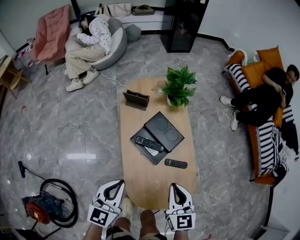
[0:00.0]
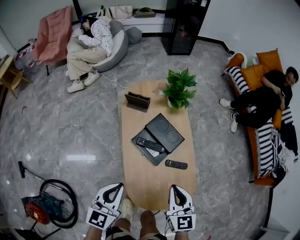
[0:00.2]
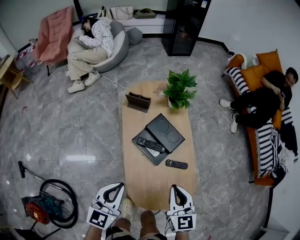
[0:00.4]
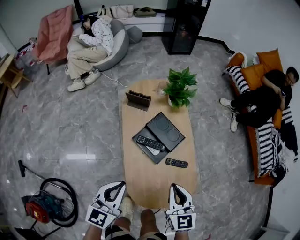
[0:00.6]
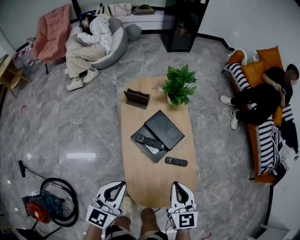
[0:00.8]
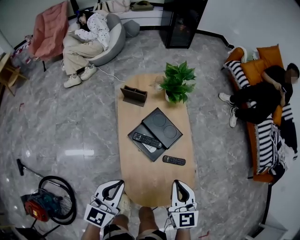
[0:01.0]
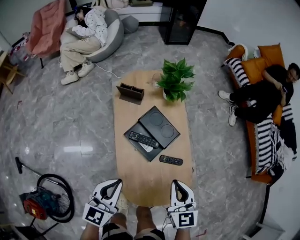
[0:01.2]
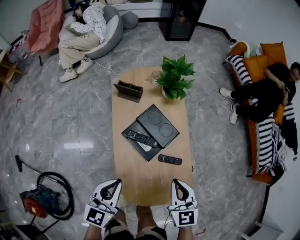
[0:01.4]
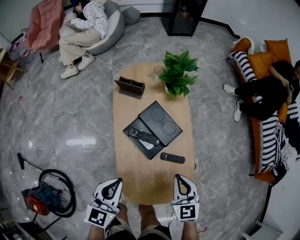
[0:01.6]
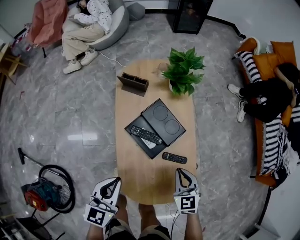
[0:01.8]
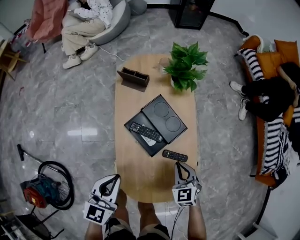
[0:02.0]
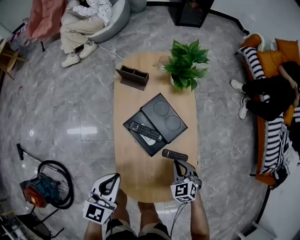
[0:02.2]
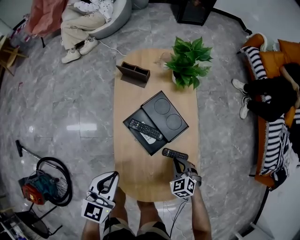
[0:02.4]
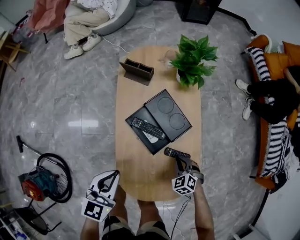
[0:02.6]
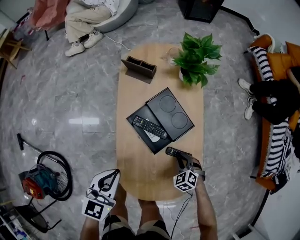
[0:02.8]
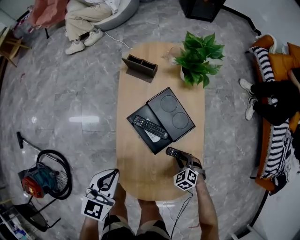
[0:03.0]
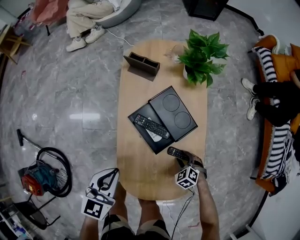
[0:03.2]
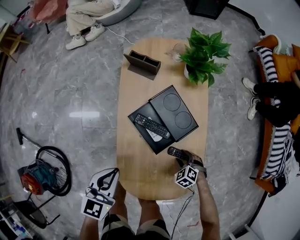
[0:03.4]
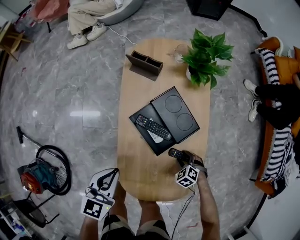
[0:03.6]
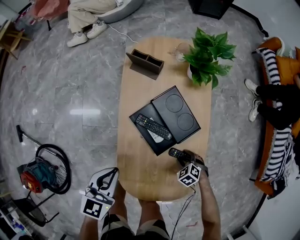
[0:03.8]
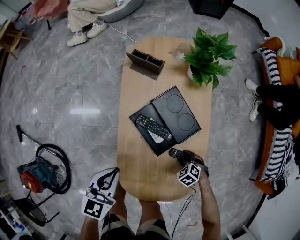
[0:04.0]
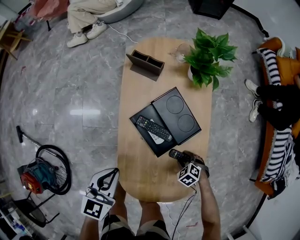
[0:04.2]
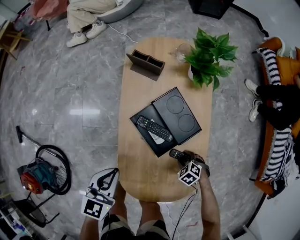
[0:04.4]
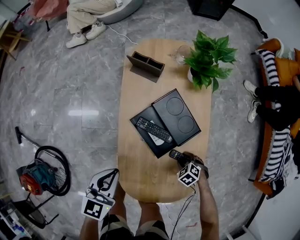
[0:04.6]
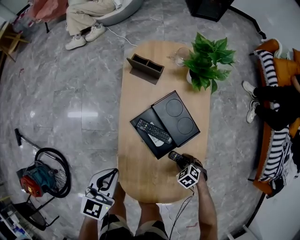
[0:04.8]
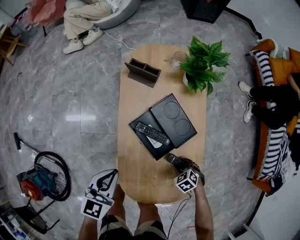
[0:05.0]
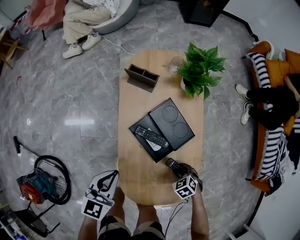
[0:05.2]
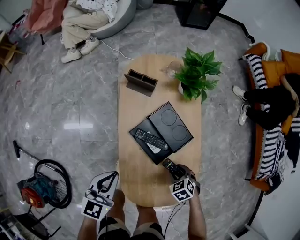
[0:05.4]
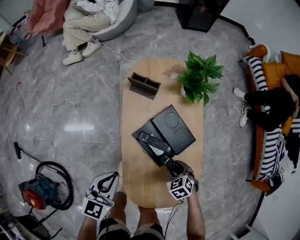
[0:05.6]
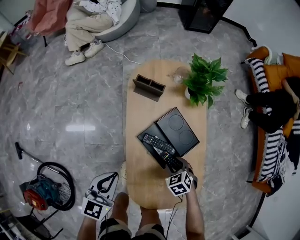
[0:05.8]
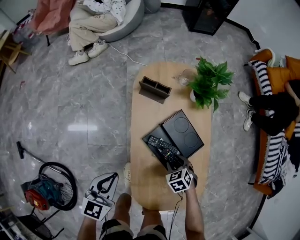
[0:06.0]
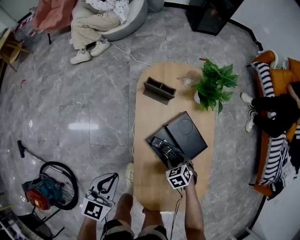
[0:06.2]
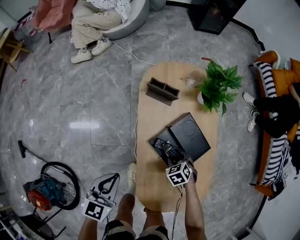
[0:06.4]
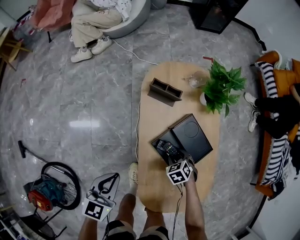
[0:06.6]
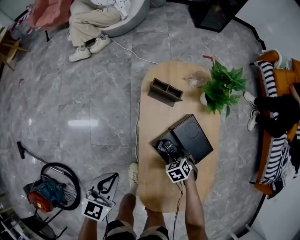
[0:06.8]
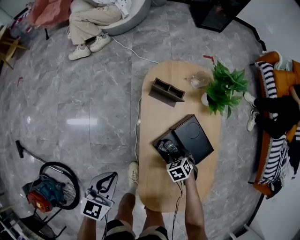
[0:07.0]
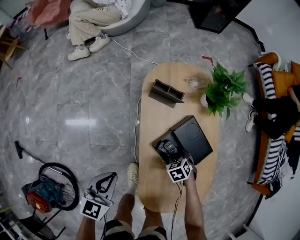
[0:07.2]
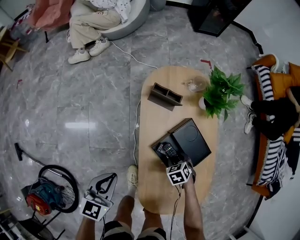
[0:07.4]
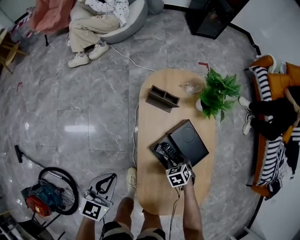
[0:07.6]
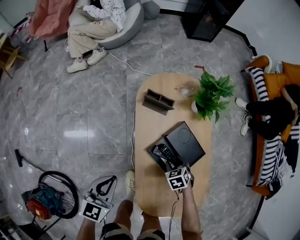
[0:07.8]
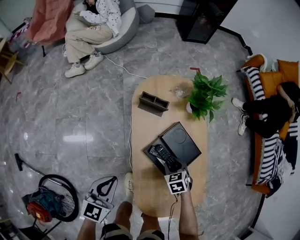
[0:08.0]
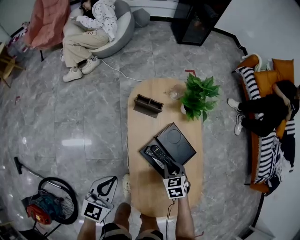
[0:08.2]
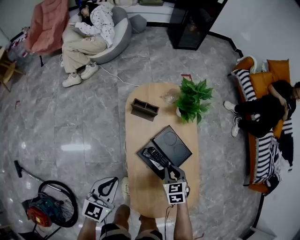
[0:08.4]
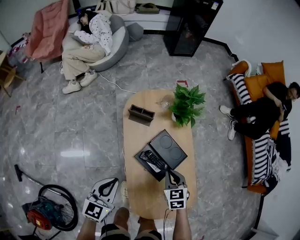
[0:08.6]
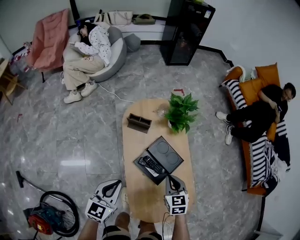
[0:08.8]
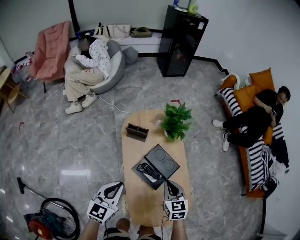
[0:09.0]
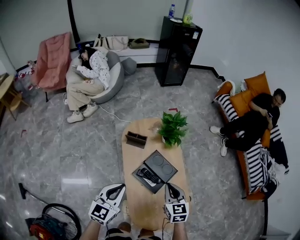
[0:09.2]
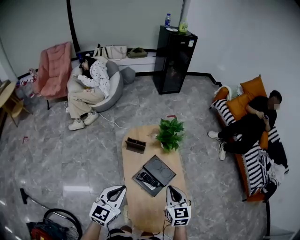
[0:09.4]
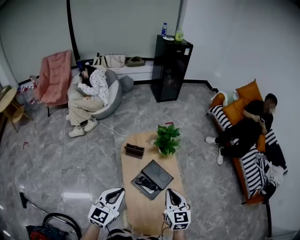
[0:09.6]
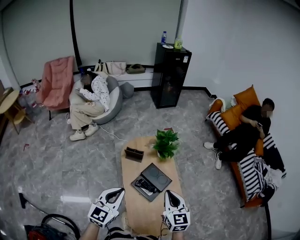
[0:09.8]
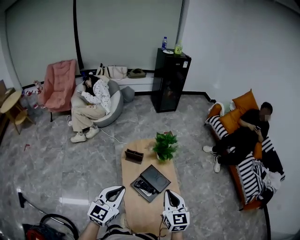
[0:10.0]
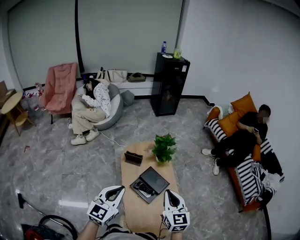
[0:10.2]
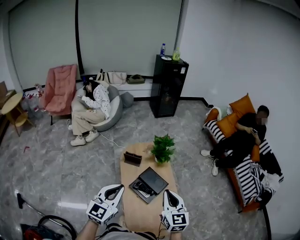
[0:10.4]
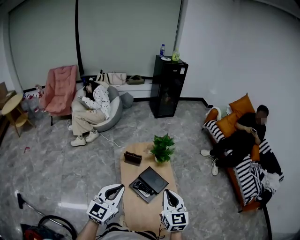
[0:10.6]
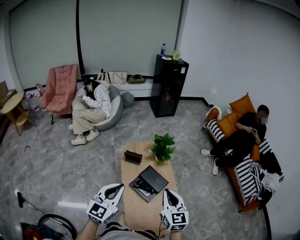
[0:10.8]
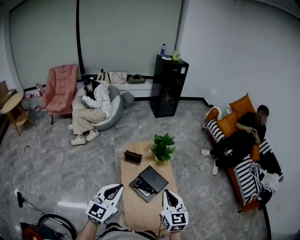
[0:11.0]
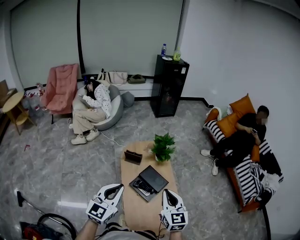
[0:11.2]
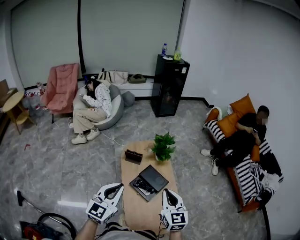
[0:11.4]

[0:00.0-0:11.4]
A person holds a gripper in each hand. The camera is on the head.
0:00.0 to 0:01.4: The right gripper moves about 5 cm.
0:01.4 to 0:02.8: The right gripper moves downward, some 30 cm, and tips its fingers downward by some 30 degrees; the left gripper goes some 10 cm downward.
0:02.8 to 0:04.2: The right gripper heads downward, covering some 5 cm, and opens up.
0:04.2 to 0:05.6: The right gripper shifts roughly 15 cm upward, and swivels roughly 20 degrees, while the left gripper ends up some 5 cm from where it was.
0:05.6 to 0:07.2: The left gripper ends up approximately 15 cm from where it was, while the right gripper shifts by about 15 cm.
0:07.2 to 0:08.6: The right gripper moves upward, some 20 cm, swivels roughly 30 degrees, and closes; the left gripper goes some 10 cm upward.
0:08.6 to 0:10.0: The grippers both shift upward by roughly 30 cm. The right gripper tips its fingers upward by some 30 degrees.
0:10.0 to 0:11.4: The grippers make only small movements.

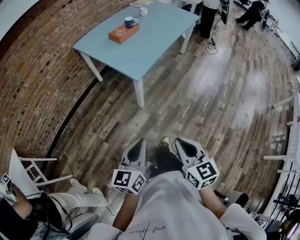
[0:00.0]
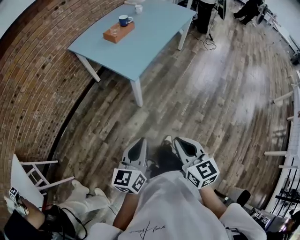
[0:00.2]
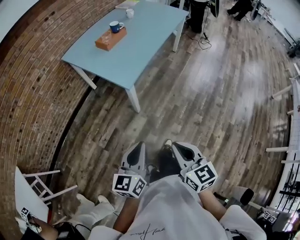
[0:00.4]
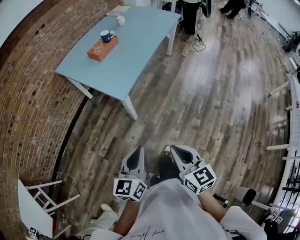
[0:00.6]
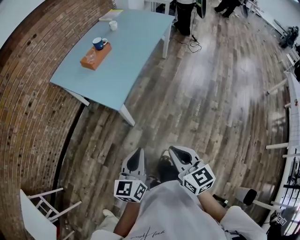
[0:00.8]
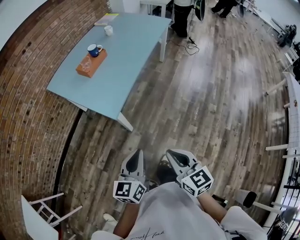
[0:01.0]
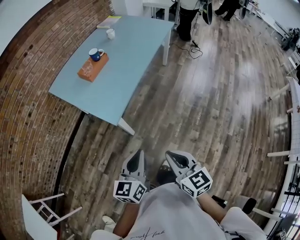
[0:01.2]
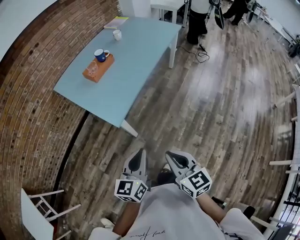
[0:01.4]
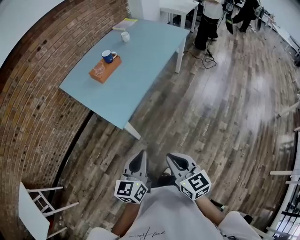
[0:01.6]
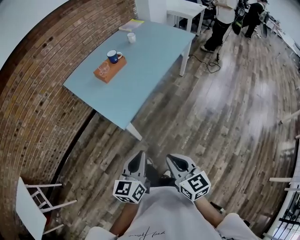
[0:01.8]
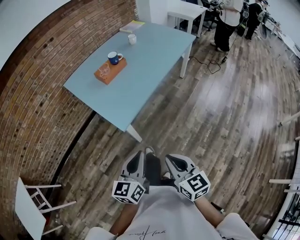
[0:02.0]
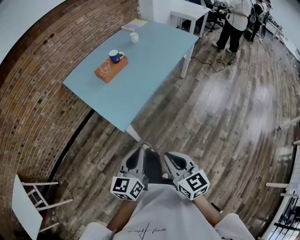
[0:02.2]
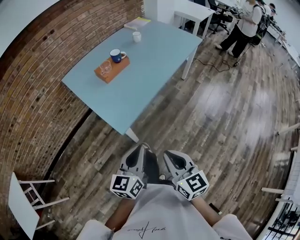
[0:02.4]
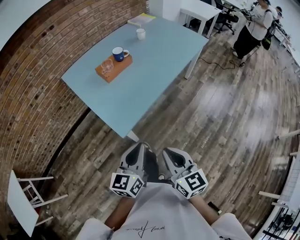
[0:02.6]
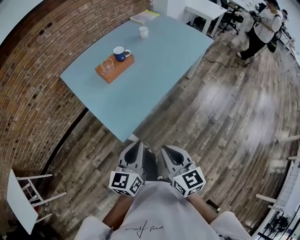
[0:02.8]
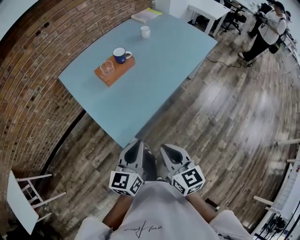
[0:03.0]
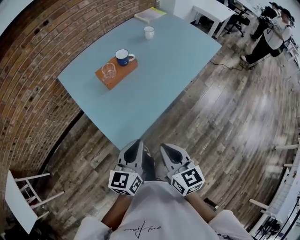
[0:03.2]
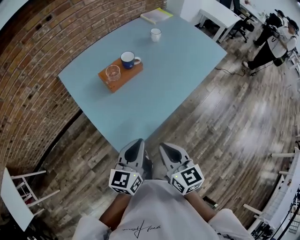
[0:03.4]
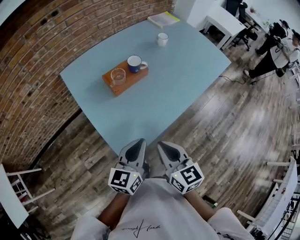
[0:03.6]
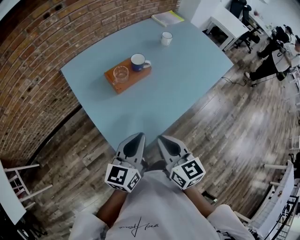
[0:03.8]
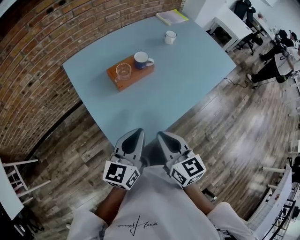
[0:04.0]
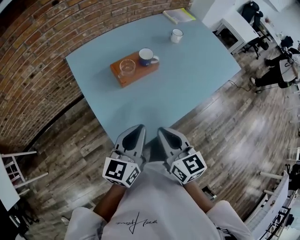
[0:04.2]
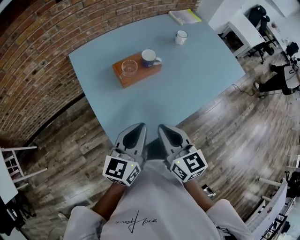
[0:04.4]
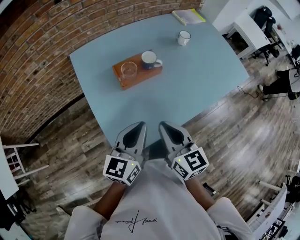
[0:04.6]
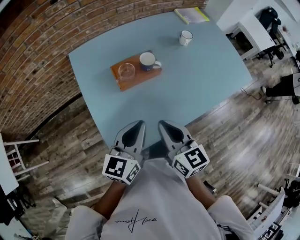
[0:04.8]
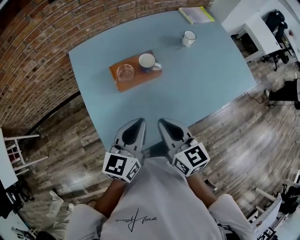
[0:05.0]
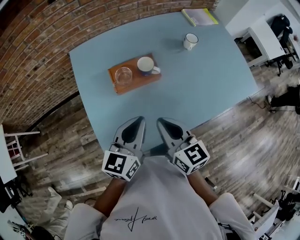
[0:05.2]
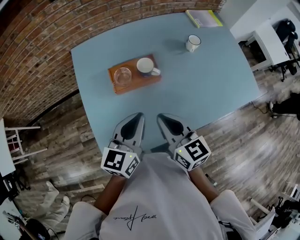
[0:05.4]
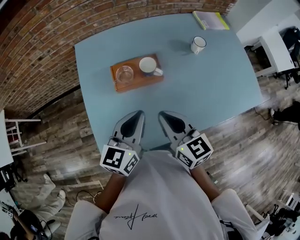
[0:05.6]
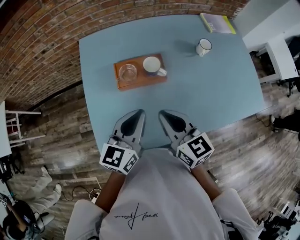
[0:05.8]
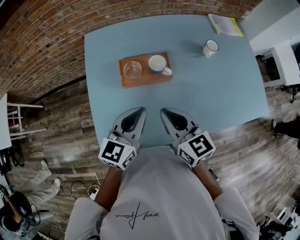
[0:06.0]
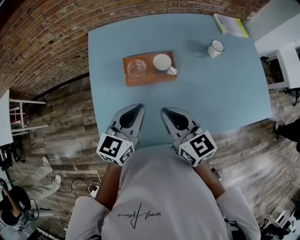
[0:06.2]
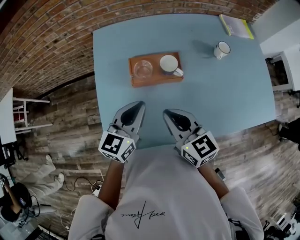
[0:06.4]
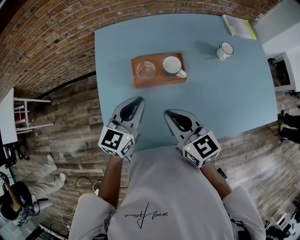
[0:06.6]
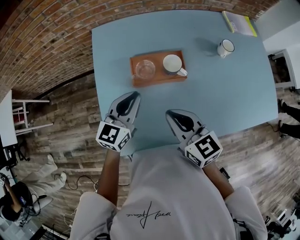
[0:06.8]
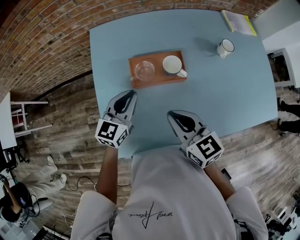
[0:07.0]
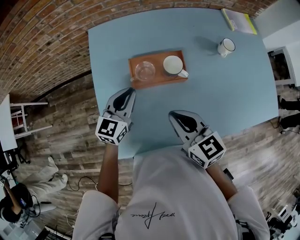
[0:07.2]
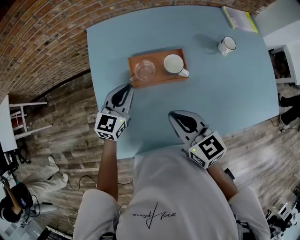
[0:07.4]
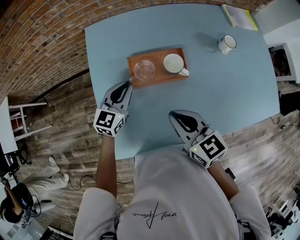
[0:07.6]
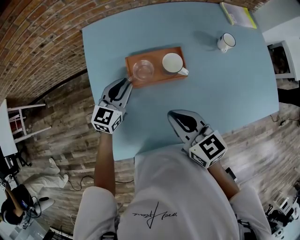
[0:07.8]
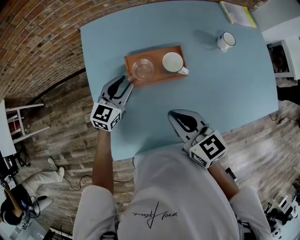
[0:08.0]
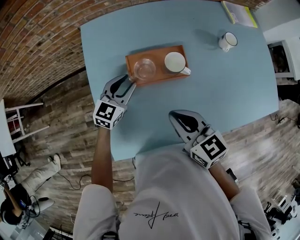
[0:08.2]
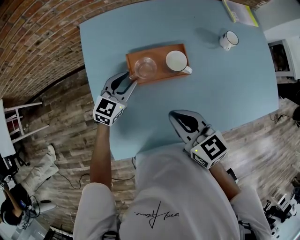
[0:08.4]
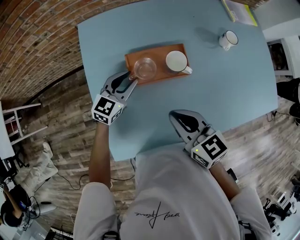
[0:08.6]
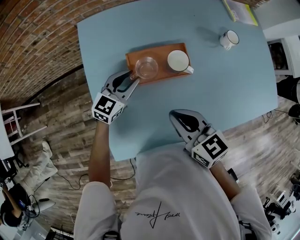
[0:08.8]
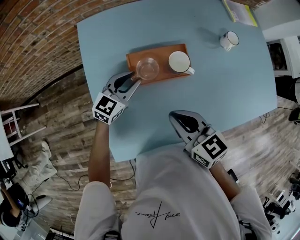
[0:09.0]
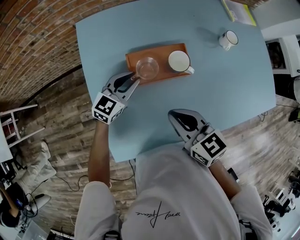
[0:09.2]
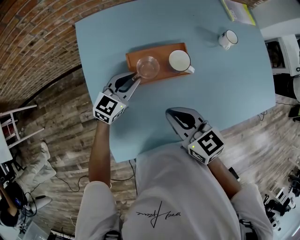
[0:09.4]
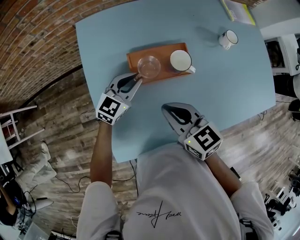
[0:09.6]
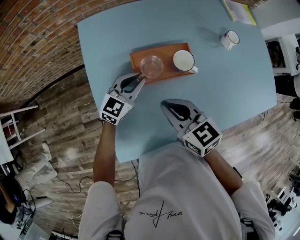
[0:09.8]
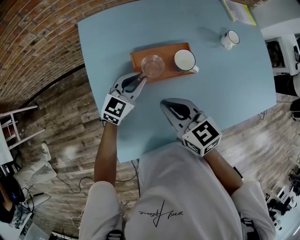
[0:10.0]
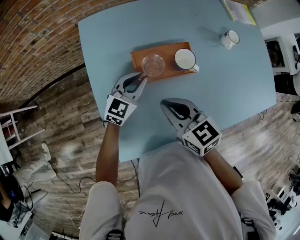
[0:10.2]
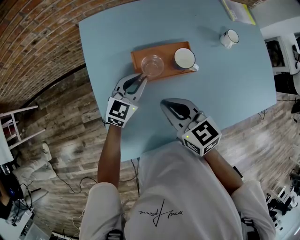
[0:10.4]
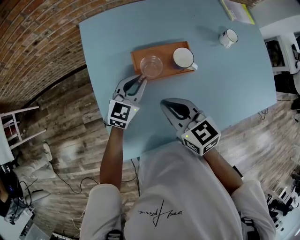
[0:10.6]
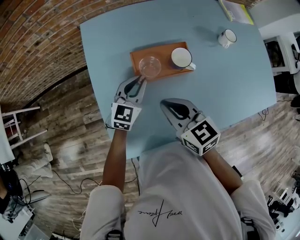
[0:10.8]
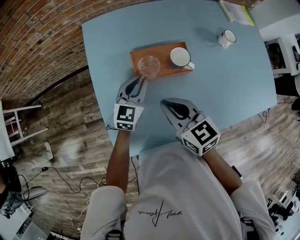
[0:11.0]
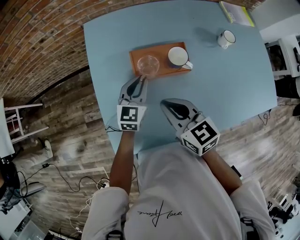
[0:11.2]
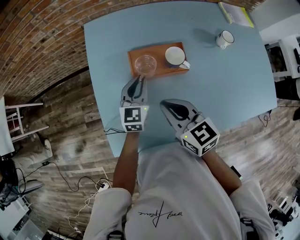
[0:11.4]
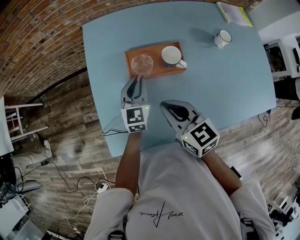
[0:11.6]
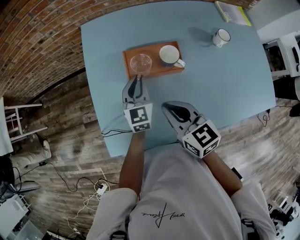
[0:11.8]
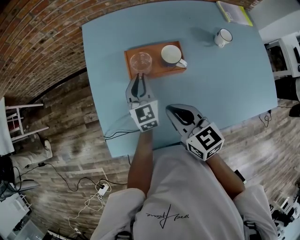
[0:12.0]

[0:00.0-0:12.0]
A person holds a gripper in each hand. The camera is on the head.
0:00.0 to 0:01.6: The two grippers go about 25 cm forward and to the right.
0:01.6 to 0:03.0: The two grippers go roughly 20 cm forward.
0:03.0 to 0:04.4: Both grippers travel together forward, roughly 20 cm.
0:04.4 to 0:06.0: The grippers both shift forward and to the right by about 15 cm. The right gripper turns by roughly 30 degrees.
0:06.0 to 0:07.6: The right gripper changes place by some 5 cm. The left gripper shifts roughly 20 cm forward, downward and to the left.
0:07.6 to 0:09.0: The left gripper shifts by some 5 cm, and opens up.
0:09.0 to 0:10.4: The right gripper ends up approximately 5 cm from where it was.
0:10.4 to 0:12.0: The right gripper moves backward, approximately 5 cm, while the left gripper swivels roughly 40 degrees.
